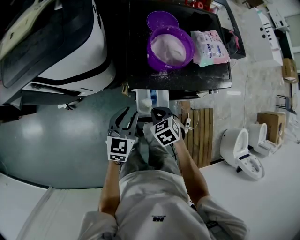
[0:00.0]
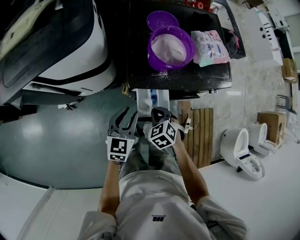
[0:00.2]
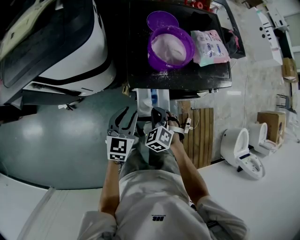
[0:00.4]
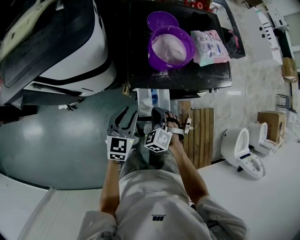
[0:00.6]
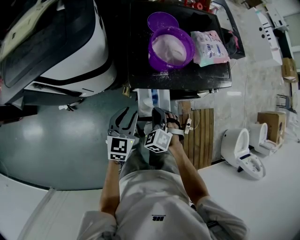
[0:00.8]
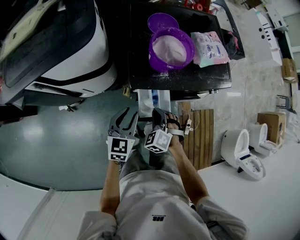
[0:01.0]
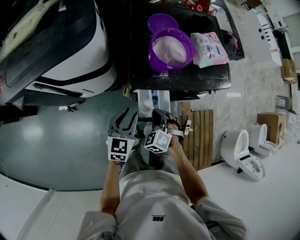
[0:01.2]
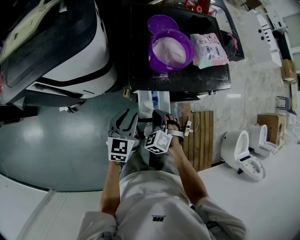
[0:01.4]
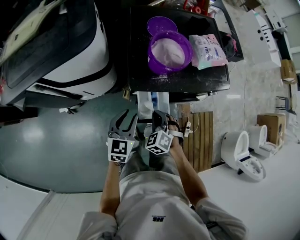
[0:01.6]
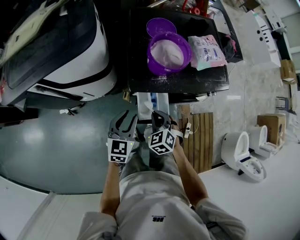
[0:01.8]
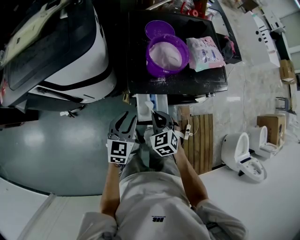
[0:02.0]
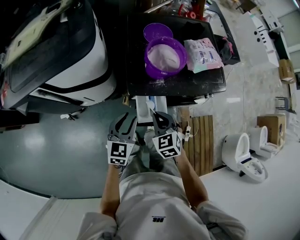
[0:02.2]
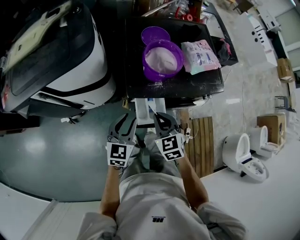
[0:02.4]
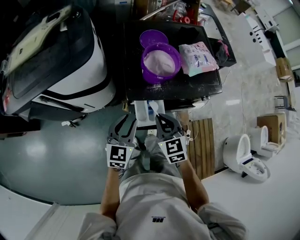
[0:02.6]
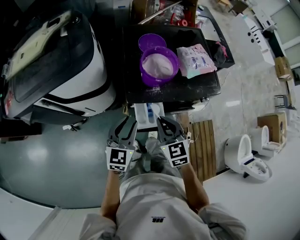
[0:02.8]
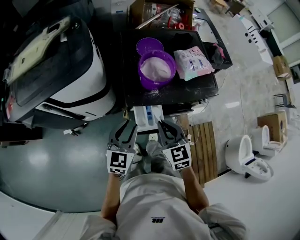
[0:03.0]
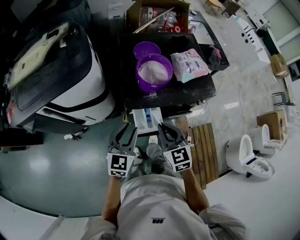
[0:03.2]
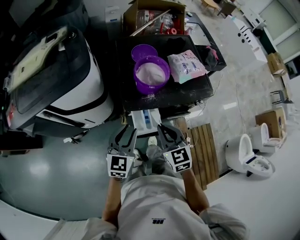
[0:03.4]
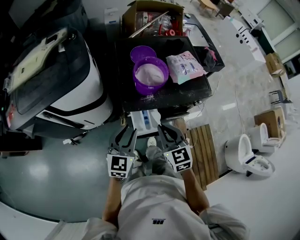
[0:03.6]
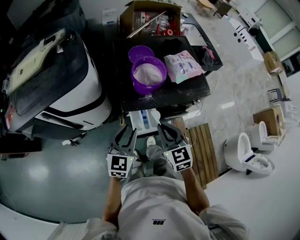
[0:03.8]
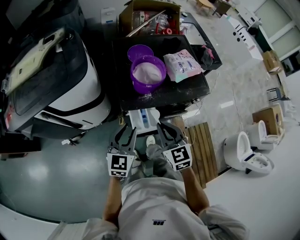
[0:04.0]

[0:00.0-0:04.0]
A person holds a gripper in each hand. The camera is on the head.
0:00.0 to 0:01.4: The right gripper rotates some 30 degrees.
0:01.4 to 0:02.6: The left gripper heads upward, covering some 5 cm. The right gripper is displaced upward by some 15 cm, and turns by roughly 40 degrees.
0:02.6 to 0:04.0: The right gripper shifts some 5 cm upward. The left gripper changes place by some 5 cm.

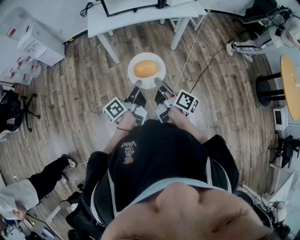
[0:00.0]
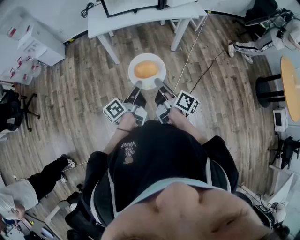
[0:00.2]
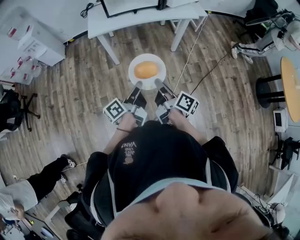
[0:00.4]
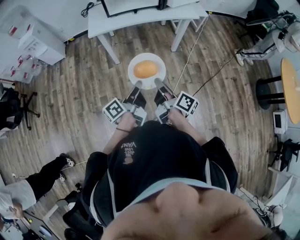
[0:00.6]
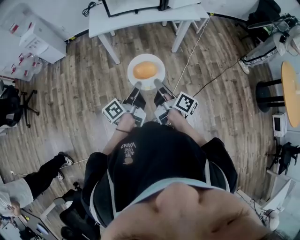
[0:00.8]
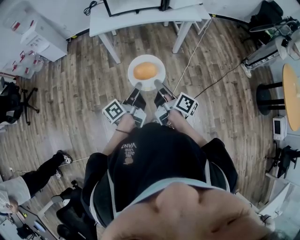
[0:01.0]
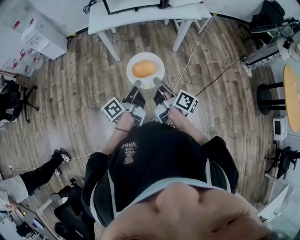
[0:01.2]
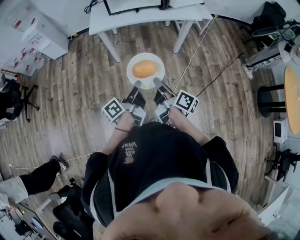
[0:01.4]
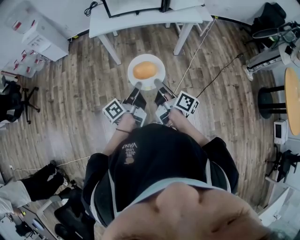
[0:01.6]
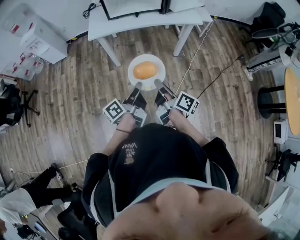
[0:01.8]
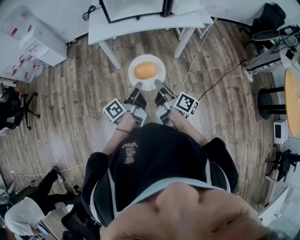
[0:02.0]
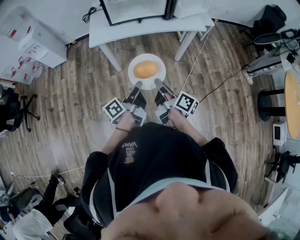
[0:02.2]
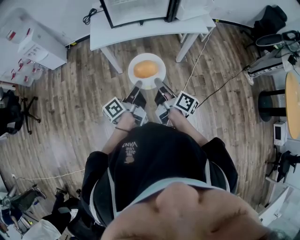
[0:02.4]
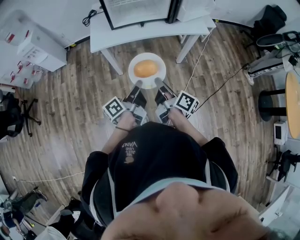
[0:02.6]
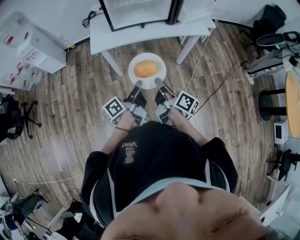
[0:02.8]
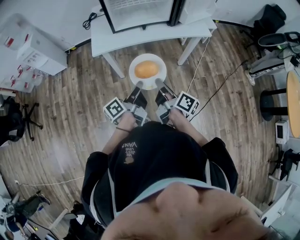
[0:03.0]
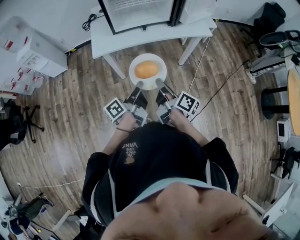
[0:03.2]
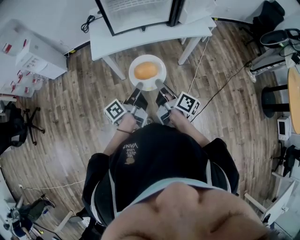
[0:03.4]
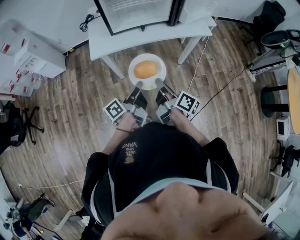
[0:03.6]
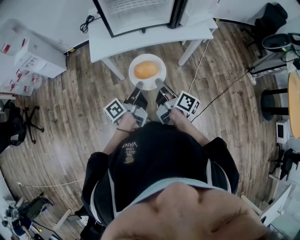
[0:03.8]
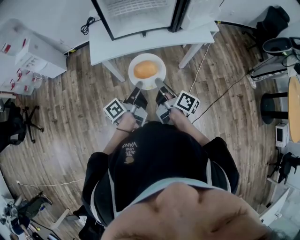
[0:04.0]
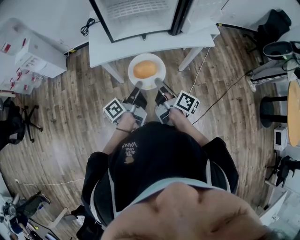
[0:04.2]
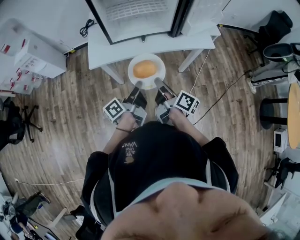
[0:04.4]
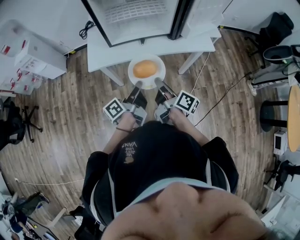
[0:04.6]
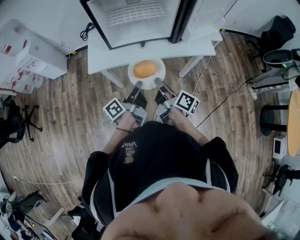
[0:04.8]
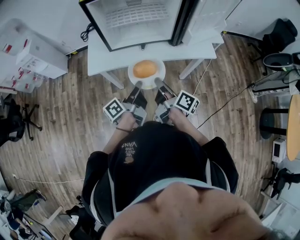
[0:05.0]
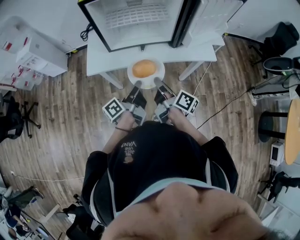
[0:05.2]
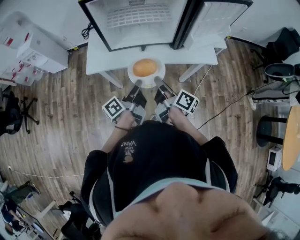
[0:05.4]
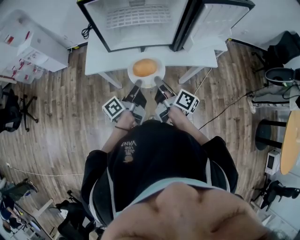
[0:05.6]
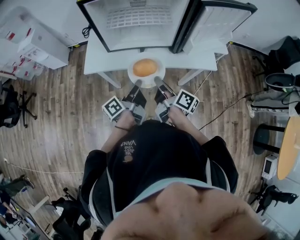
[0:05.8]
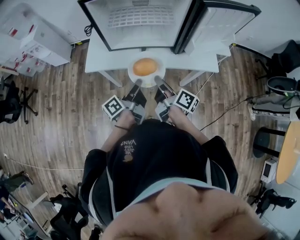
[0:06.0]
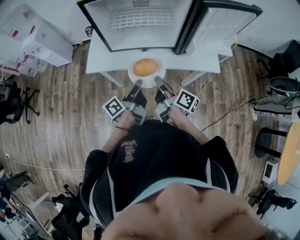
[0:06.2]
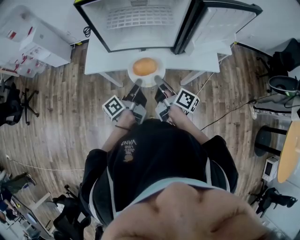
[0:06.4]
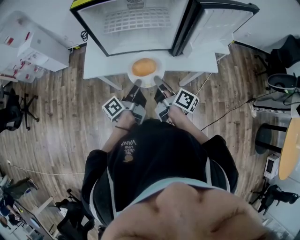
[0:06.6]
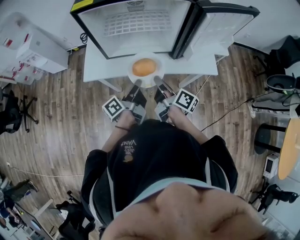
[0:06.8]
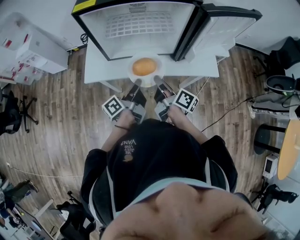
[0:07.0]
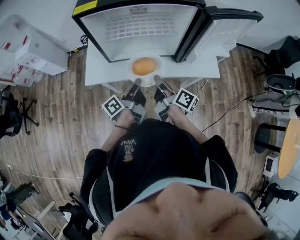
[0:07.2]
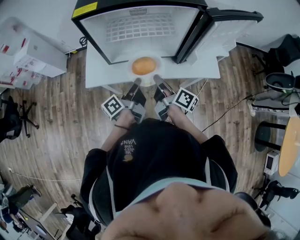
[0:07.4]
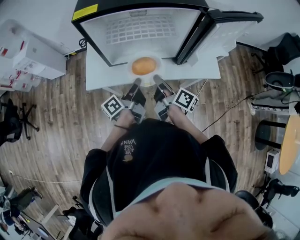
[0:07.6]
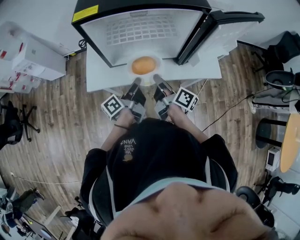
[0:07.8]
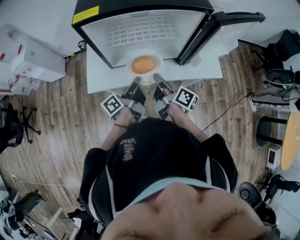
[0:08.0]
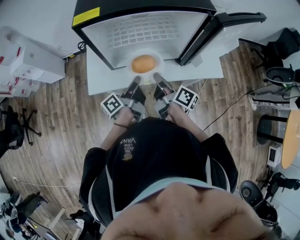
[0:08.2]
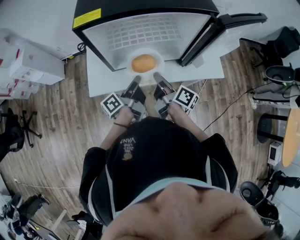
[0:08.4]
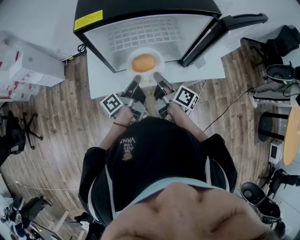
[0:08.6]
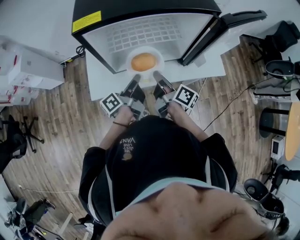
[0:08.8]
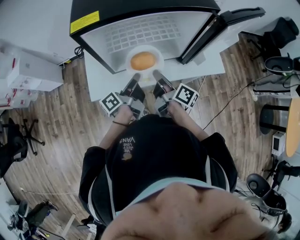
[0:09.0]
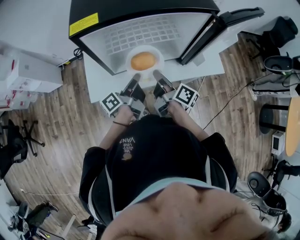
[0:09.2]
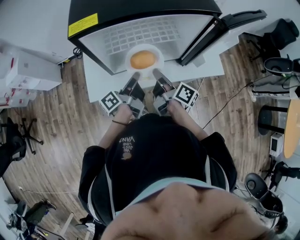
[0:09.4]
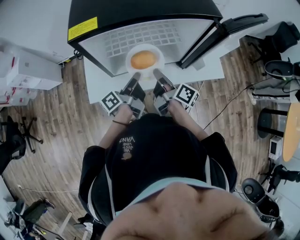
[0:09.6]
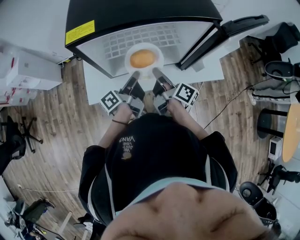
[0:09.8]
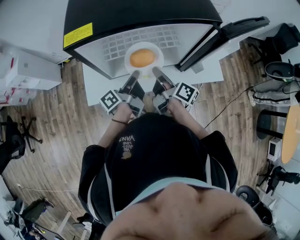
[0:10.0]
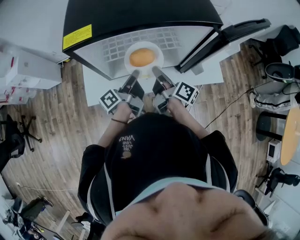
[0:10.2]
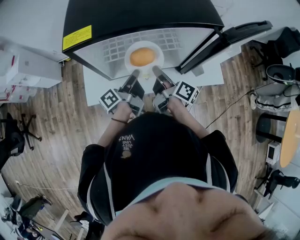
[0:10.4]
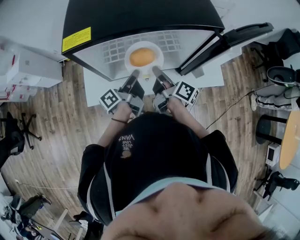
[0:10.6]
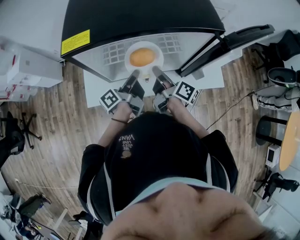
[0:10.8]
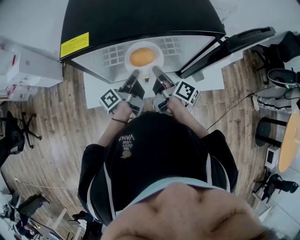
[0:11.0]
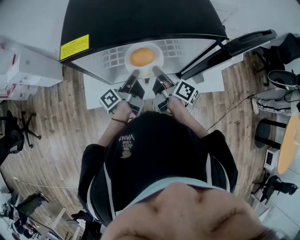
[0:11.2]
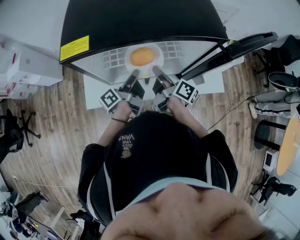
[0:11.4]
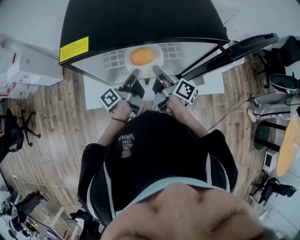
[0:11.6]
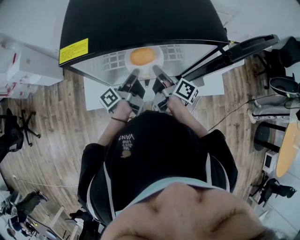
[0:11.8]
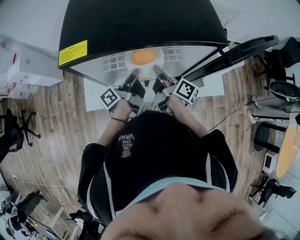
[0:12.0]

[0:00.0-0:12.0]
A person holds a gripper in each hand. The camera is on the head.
0:00.0 to 0:01.6: There are only small adjustments of the grippers.
0:01.6 to 0:03.0: Both grippers move forward and to the left, some 20 cm.
0:03.0 to 0:04.4: The grippers both shift forward by roughly 10 cm.
0:04.4 to 0:06.0: Both grippers move forward and to the right, approximately 10 cm.
0:06.0 to 0:07.6: The grippers both shift forward by approximately 10 cm.
0:07.6 to 0:09.0: The right gripper shifts by about 5 cm; the left gripper goes roughly 5 cm forward.
0:09.0 to 0:10.4: The grippers both shift forward by some 5 cm.
0:10.4 to 0:12.0: Both grippers travel together forward, approximately 5 cm.

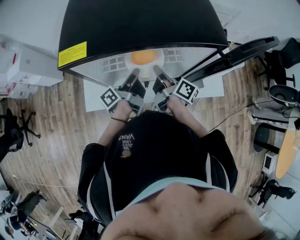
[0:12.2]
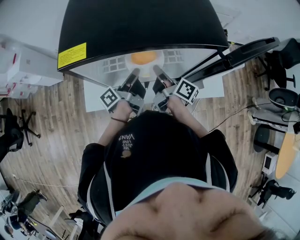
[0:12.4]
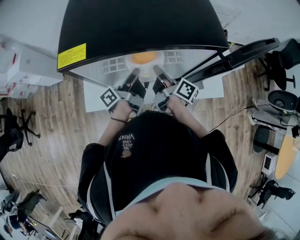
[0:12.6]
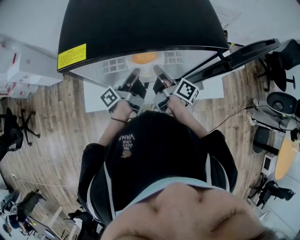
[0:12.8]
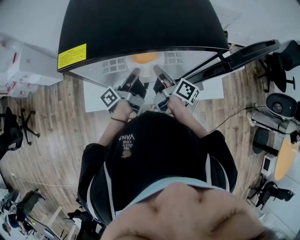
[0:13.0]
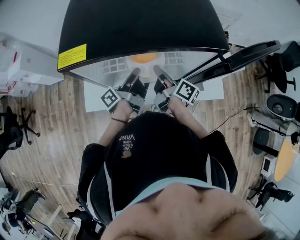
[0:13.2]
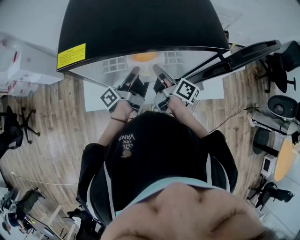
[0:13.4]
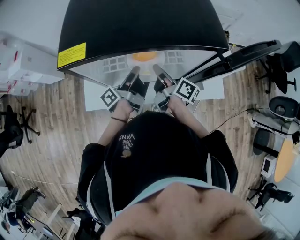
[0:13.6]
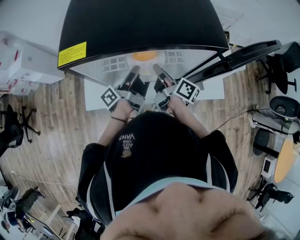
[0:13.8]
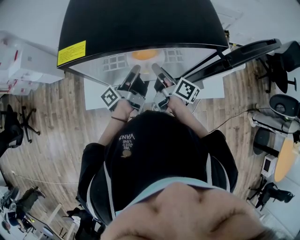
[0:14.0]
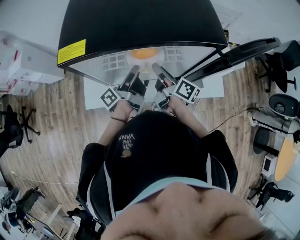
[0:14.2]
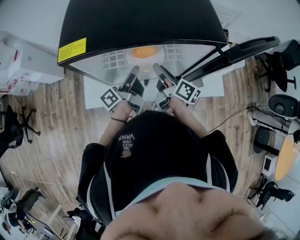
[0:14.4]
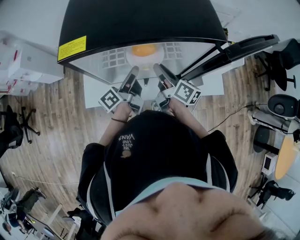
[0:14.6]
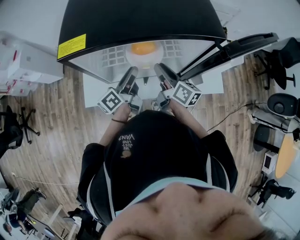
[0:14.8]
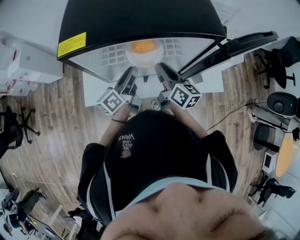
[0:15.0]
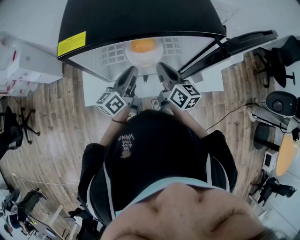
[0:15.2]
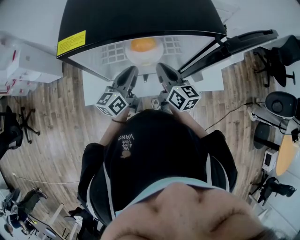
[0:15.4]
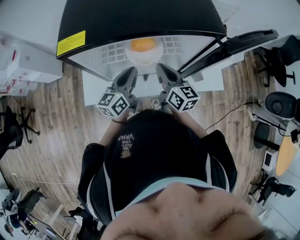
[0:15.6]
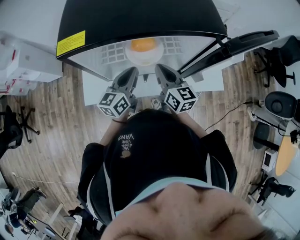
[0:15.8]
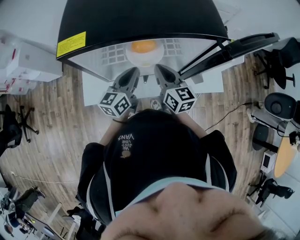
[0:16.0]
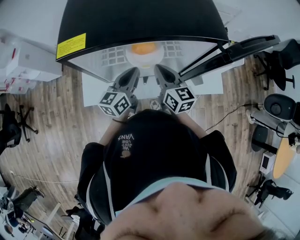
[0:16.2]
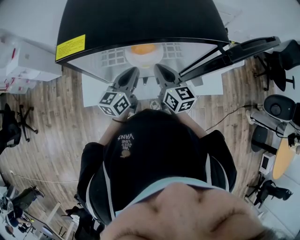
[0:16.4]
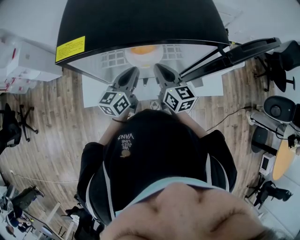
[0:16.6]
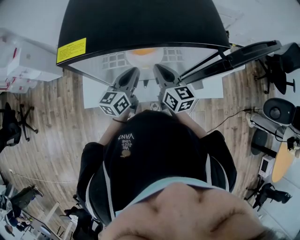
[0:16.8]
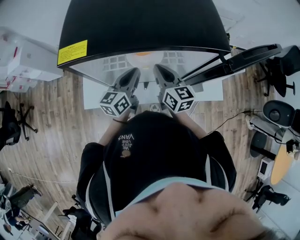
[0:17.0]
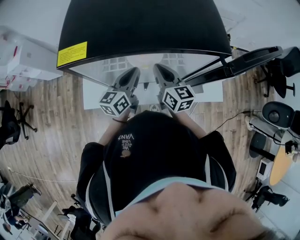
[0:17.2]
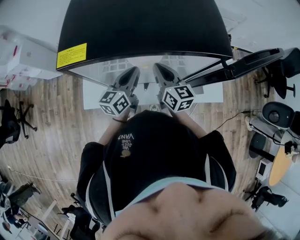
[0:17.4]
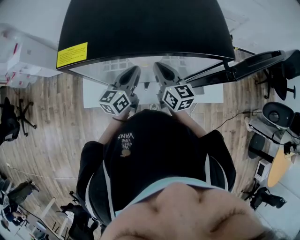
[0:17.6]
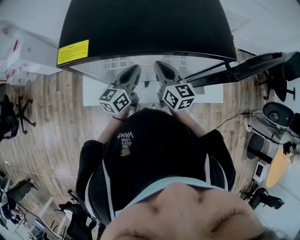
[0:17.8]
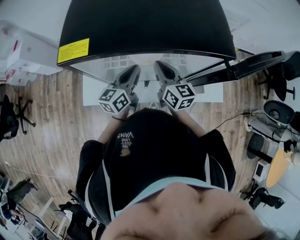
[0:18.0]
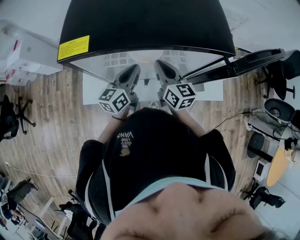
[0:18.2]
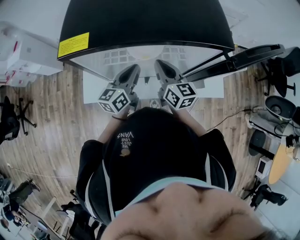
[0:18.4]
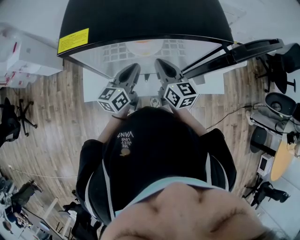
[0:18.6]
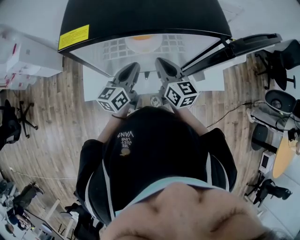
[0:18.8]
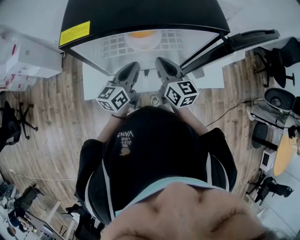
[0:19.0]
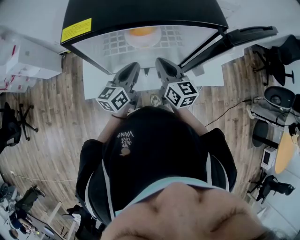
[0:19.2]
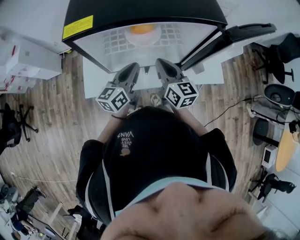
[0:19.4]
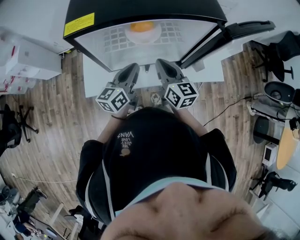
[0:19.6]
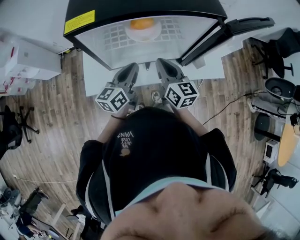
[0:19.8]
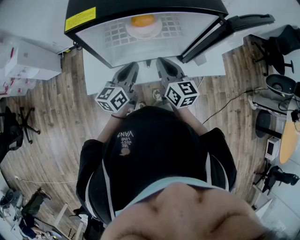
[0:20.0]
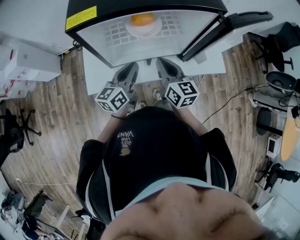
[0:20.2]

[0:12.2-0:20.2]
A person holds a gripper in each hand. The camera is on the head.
0:12.2 to 0:13.8: The grippers move only a little.
0:13.8 to 0:15.4: The right gripper turns by approximately 40 degrees, while the left gripper rolls clockwise, seen from behind, by roughly 60 degrees.
0:15.4 to 0:18.6: There are only small adjustments of the grippers.
0:18.6 to 0:20.2: Both grippers move backward, some 10 cm.
